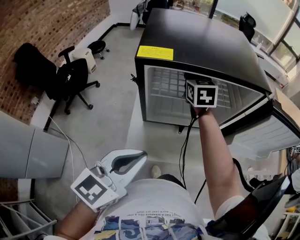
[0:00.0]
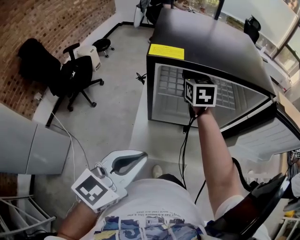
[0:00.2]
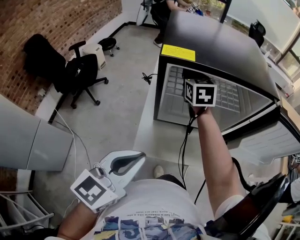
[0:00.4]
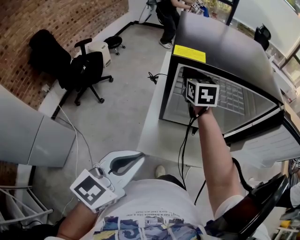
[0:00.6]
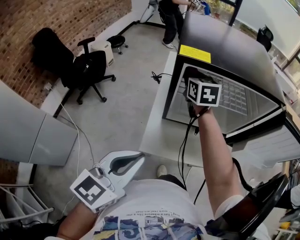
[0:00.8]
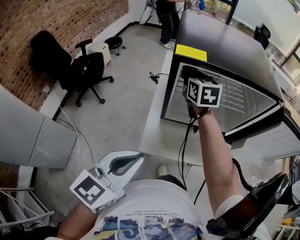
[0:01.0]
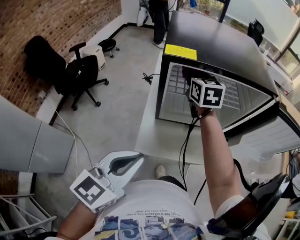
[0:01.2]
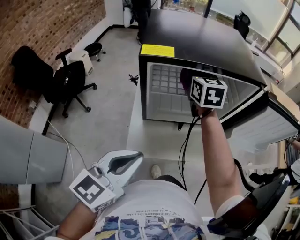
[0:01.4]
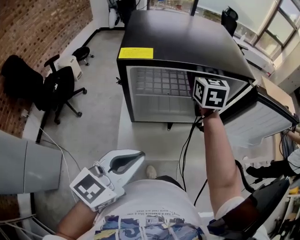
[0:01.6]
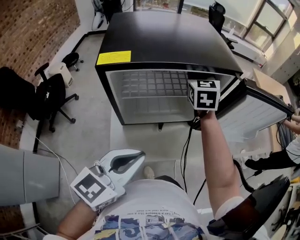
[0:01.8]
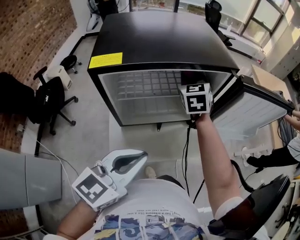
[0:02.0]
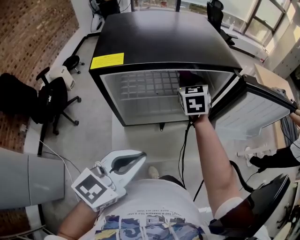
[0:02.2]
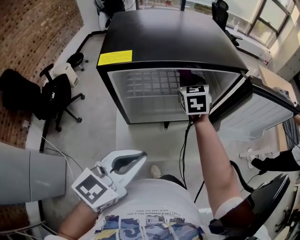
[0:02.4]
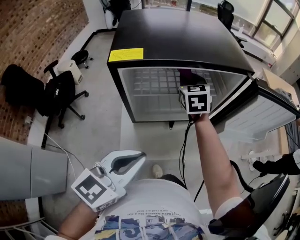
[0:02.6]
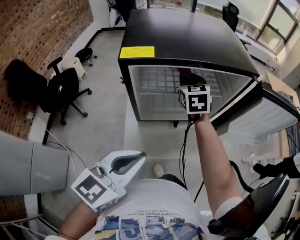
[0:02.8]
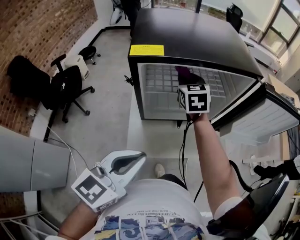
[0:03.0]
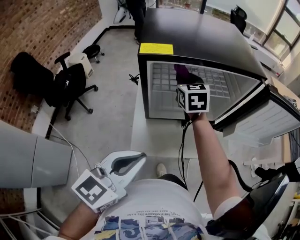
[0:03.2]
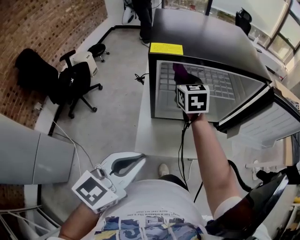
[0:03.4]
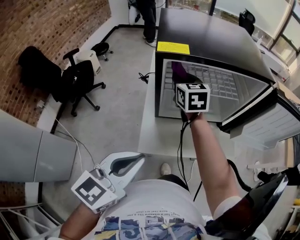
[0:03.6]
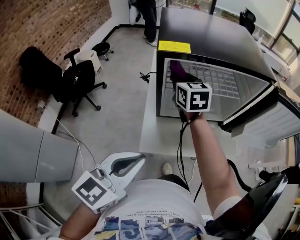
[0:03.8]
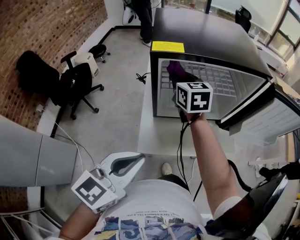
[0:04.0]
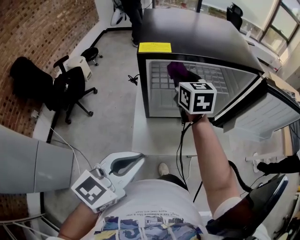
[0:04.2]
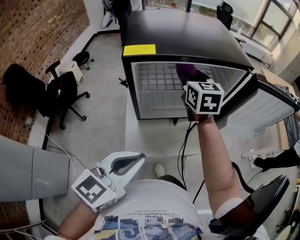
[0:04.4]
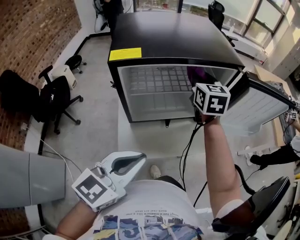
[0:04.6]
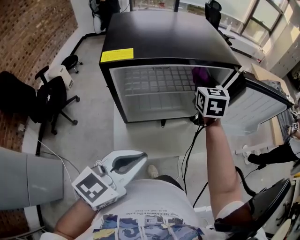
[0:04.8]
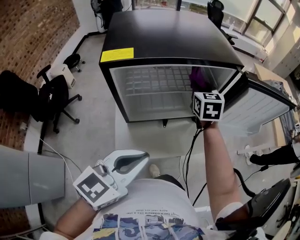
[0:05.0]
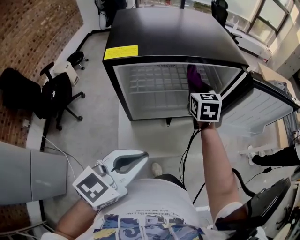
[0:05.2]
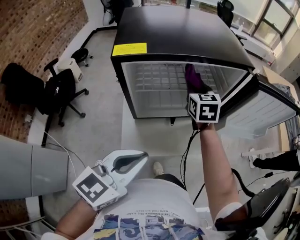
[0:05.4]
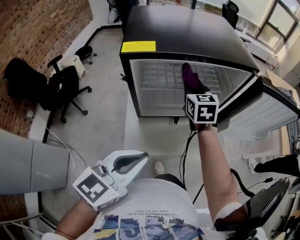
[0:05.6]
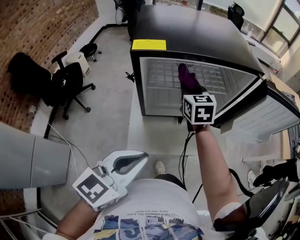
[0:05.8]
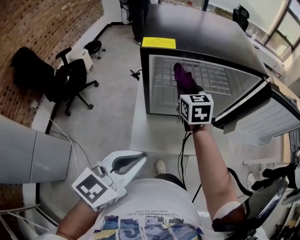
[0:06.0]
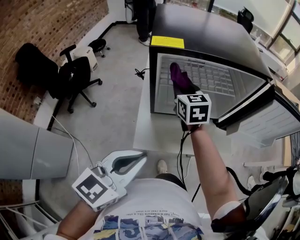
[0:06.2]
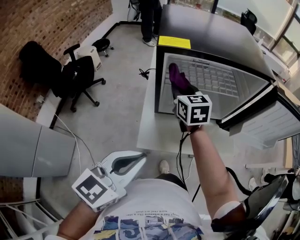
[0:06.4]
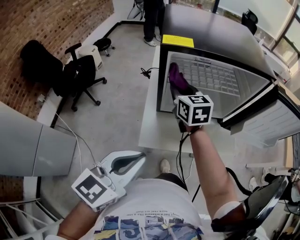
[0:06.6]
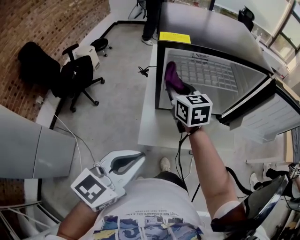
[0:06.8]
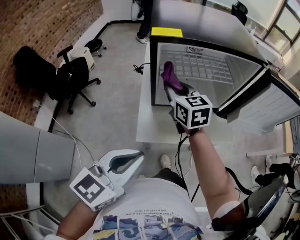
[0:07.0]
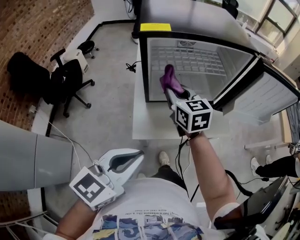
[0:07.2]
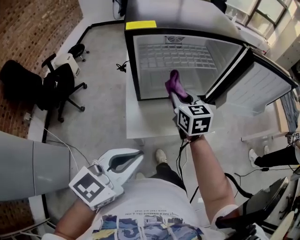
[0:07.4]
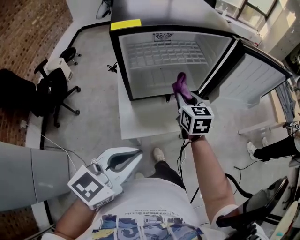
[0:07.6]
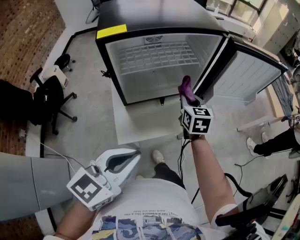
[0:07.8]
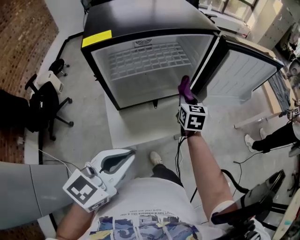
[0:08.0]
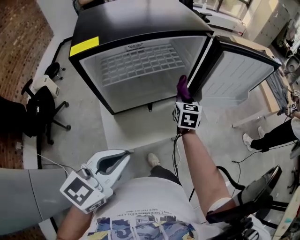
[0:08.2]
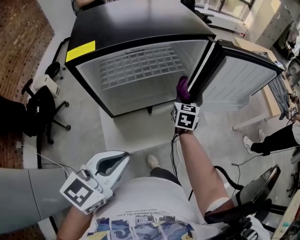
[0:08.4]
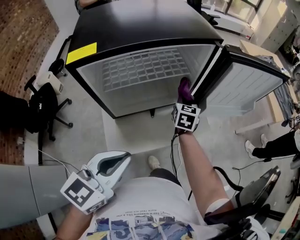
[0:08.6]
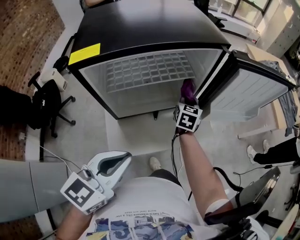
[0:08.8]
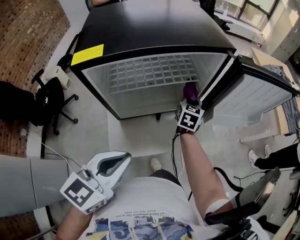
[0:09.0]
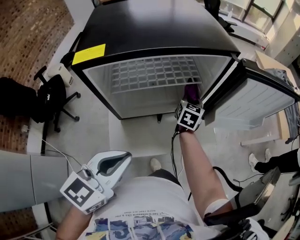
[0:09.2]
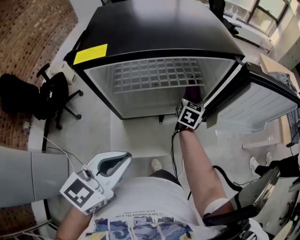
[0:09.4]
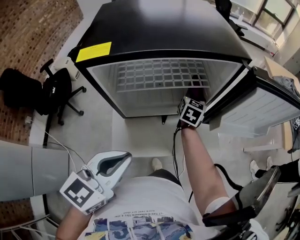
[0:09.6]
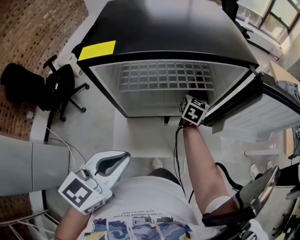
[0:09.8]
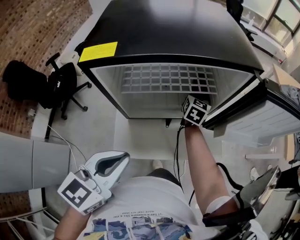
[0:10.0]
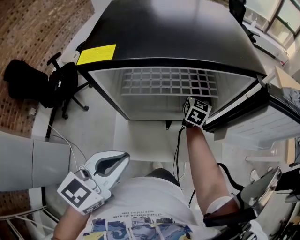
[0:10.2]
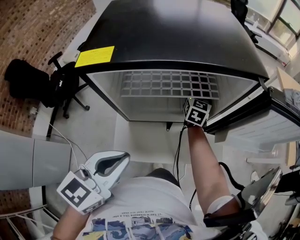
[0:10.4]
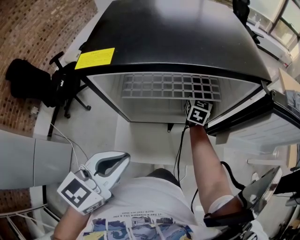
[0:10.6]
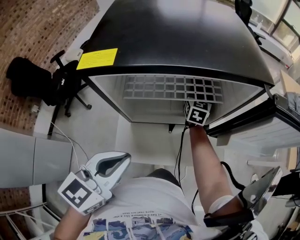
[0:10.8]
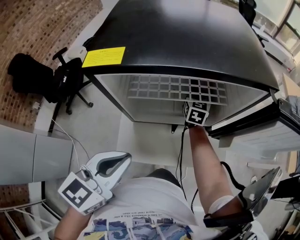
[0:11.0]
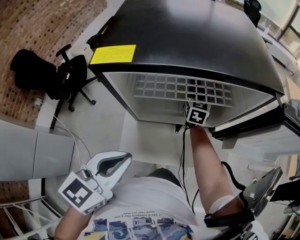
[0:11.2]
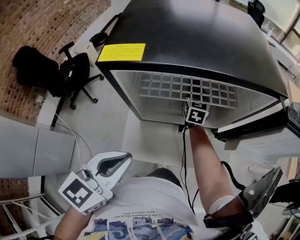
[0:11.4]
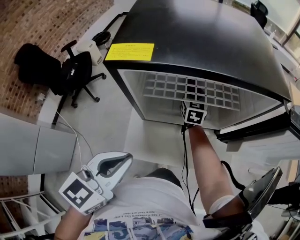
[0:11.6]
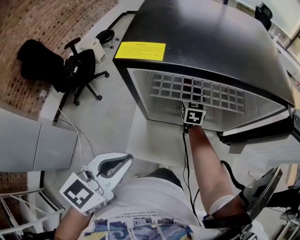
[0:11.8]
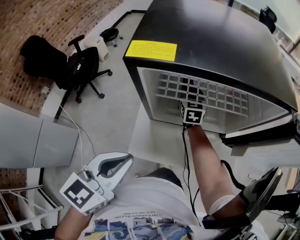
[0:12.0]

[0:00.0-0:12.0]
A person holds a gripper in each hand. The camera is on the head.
0:00.0 to 0:01.6: The right gripper goes approximately 10 cm to the right and upward.
0:01.6 to 0:03.0: The right gripper shifts about 10 cm downward and to the left.
0:03.0 to 0:04.4: The right gripper heads upward, covering approximately 5 cm, and reaches roughly 10 cm to the left, then returns.
0:04.4 to 0:06.0: The right gripper shifts roughly 10 cm downward, and moves roughly 10 cm to the right and comes back.
0:06.0 to 0:07.6: The right gripper travels to the right and backward by roughly 15 cm. Meanwhile the left gripper moves backward, some 5 cm.
0:07.6 to 0:09.0: The left gripper shifts roughly 10 cm forward. Meanwhile the right gripper moves forward and downward, approximately 20 cm, and swivels roughly 20 degrees.
0:09.0 to 0:10.4: The right gripper heads to the left and forward, covering approximately 10 cm.
0:10.4 to 0:12.0: The right gripper is displaced to the left by some 20 cm, and turns by some 20 degrees. The left gripper travels to the left by some 5 cm.

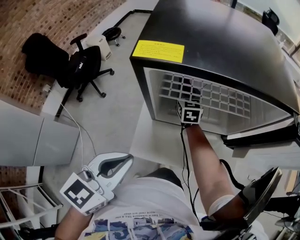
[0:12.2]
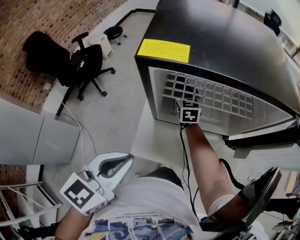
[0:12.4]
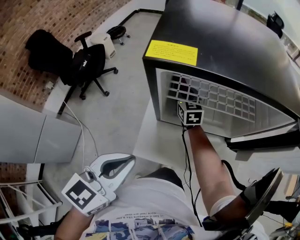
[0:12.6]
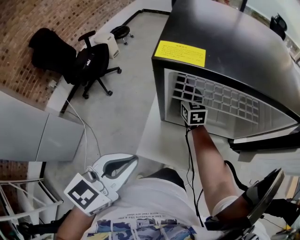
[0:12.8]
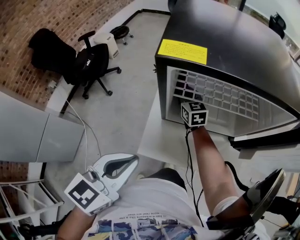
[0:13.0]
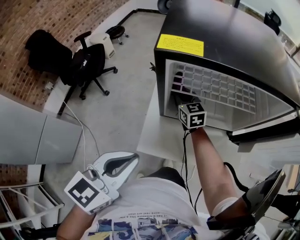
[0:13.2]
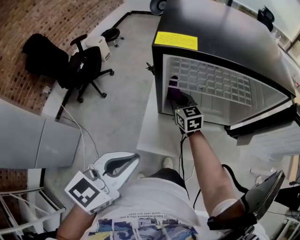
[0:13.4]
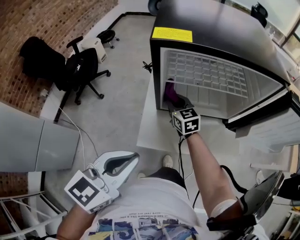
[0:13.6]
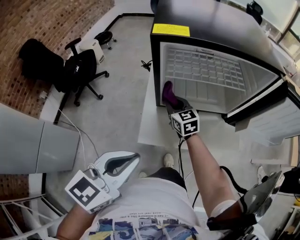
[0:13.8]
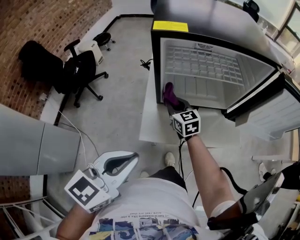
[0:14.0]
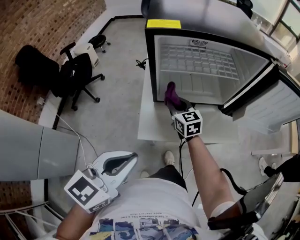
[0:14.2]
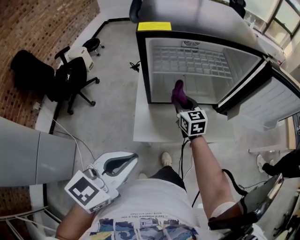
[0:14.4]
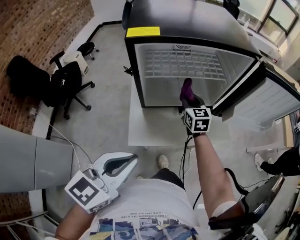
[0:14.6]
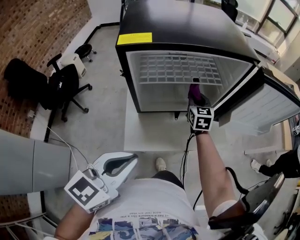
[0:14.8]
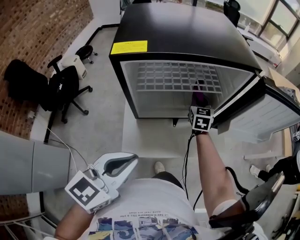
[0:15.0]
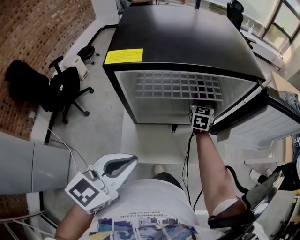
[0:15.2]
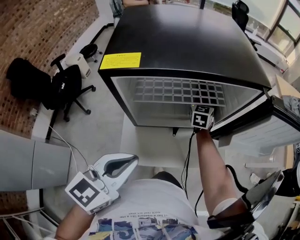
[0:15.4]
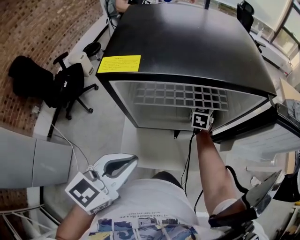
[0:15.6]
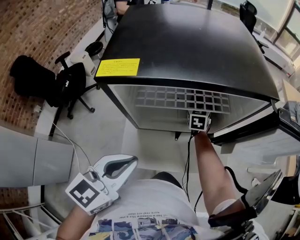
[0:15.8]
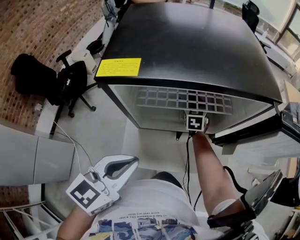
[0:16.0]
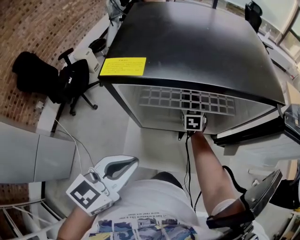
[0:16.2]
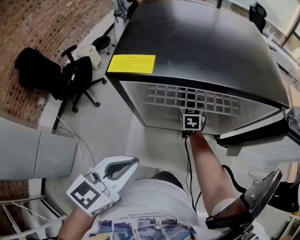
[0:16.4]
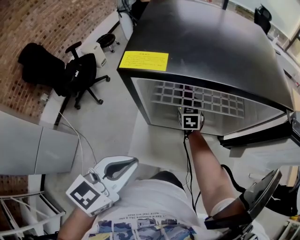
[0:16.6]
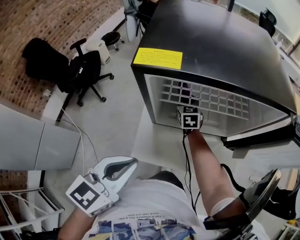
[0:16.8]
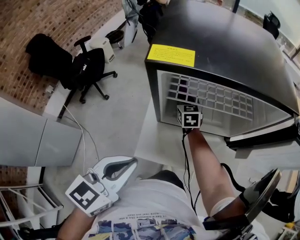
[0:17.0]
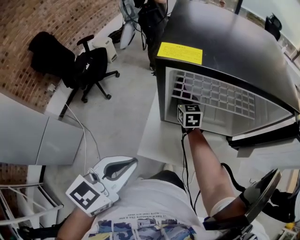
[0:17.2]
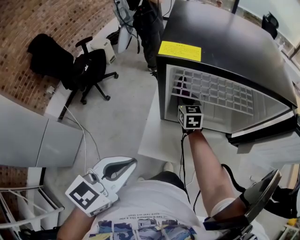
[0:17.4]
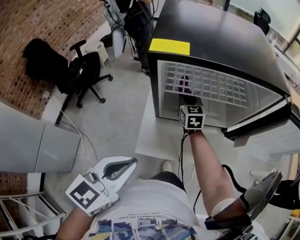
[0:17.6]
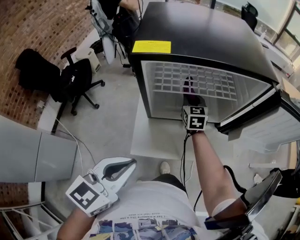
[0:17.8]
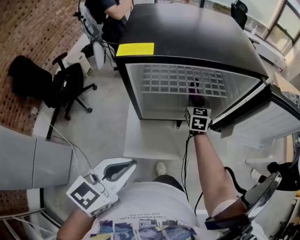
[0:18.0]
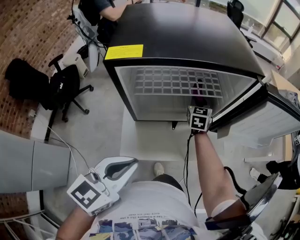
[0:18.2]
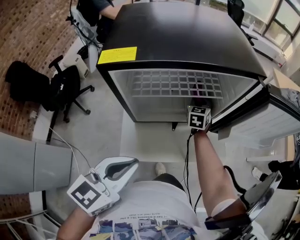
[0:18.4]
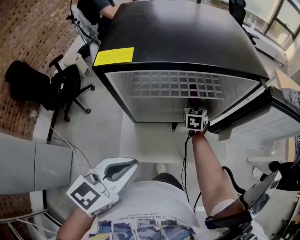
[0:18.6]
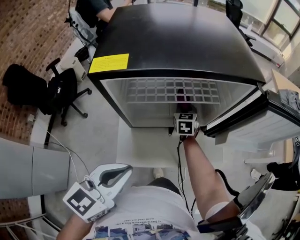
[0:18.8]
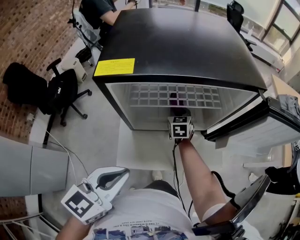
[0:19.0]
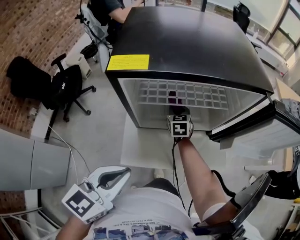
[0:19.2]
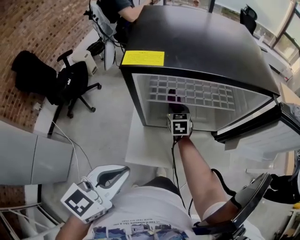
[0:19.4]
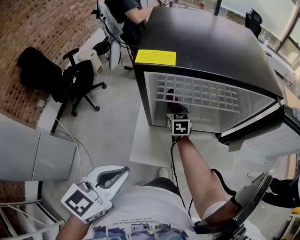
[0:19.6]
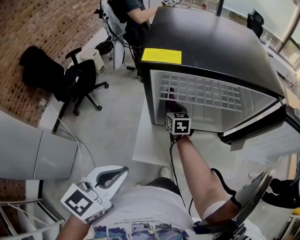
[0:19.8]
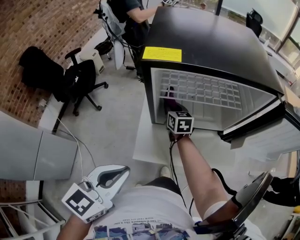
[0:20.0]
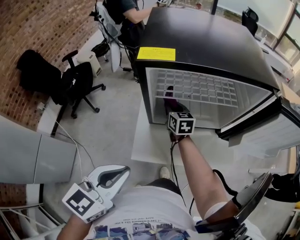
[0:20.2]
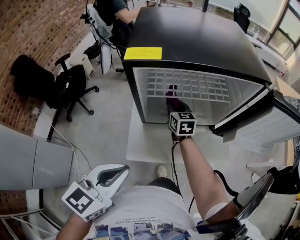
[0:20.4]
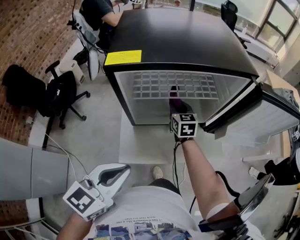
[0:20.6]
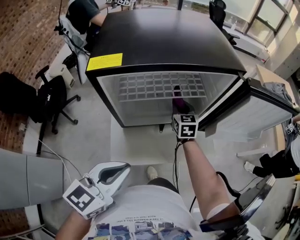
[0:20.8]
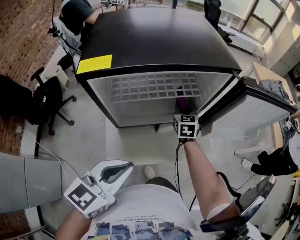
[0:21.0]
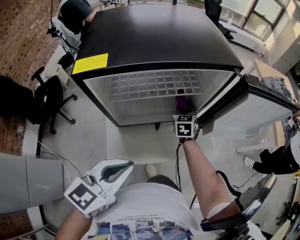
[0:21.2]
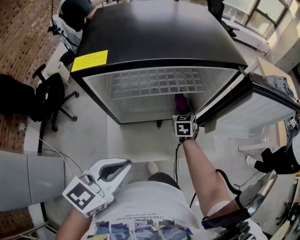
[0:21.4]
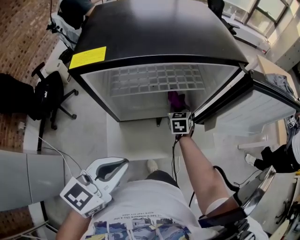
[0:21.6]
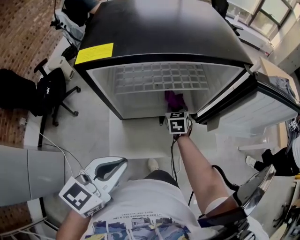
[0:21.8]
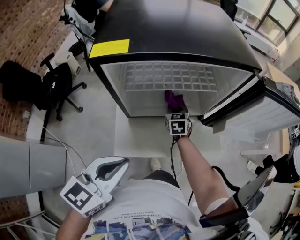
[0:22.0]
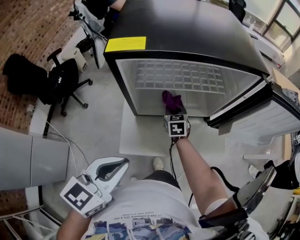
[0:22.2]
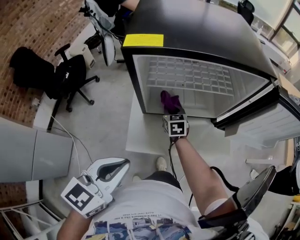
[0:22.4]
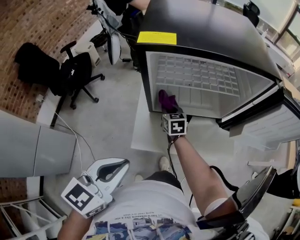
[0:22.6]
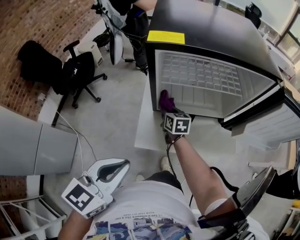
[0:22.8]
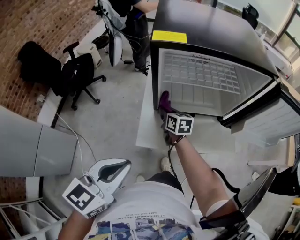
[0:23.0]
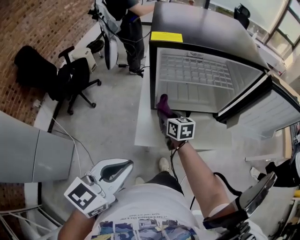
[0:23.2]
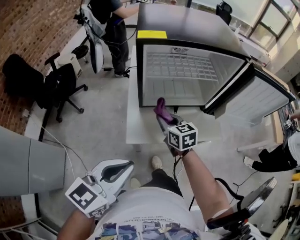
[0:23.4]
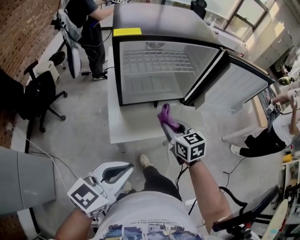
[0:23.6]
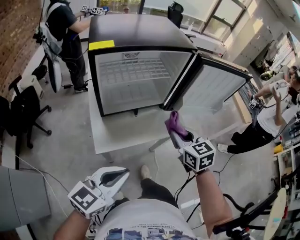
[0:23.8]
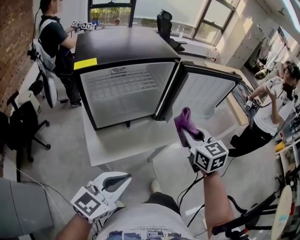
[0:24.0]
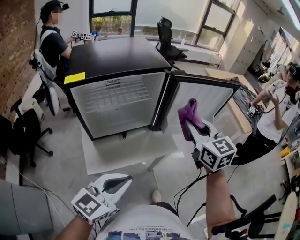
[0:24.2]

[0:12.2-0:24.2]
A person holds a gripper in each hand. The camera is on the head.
0:12.2 to 0:13.8: The right gripper is displaced backward by some 15 cm. The left gripper moves backward, some 5 cm.
0:13.8 to 0:15.2: The right gripper goes about 30 cm to the right and forward, and turns by about 40 degrees. The left gripper heads forward, covering some 10 cm.
0:15.2 to 0:16.6: The right gripper moves to the left, some 15 cm, and rotates approximately 20 degrees.
0:16.6 to 0:18.2: The left gripper shifts by about 5 cm. The right gripper shifts roughly 15 cm to the right.
0:18.2 to 0:19.8: The left gripper travels to the left by some 10 cm. The right gripper goes about 20 cm to the left, and rotates approximately 30 degrees.
0:19.8 to 0:21.2: The left gripper shifts by some 10 cm, while the right gripper moves roughly 25 cm, and rotates approximately 30 degrees.
0:21.2 to 0:22.6: The left gripper heads backward and to the left, covering approximately 10 cm. Meanwhile the right gripper travels to the left and backward by roughly 25 cm, and changes its angle by some 30 degrees.
0:22.6 to 0:24.2: The right gripper changes place by roughly 50 cm, and changes its angle by approximately 30 degrees. The left gripper ends up some 20 cm from where it was, and rotates about 30 degrees.
